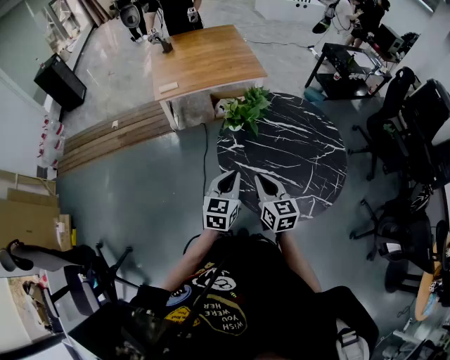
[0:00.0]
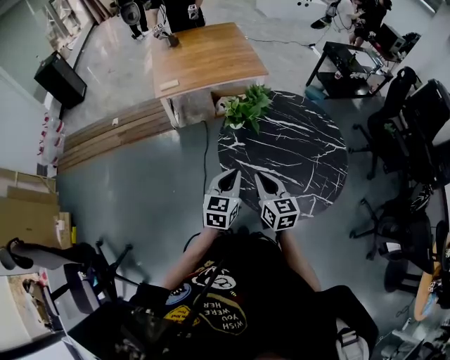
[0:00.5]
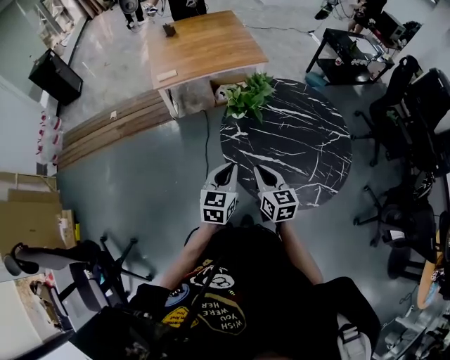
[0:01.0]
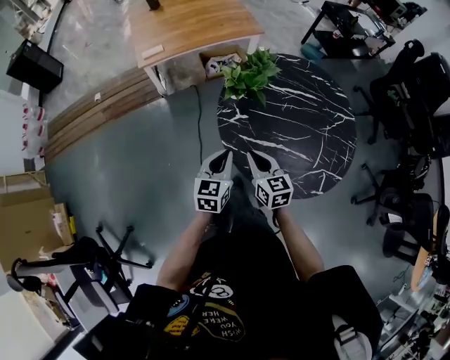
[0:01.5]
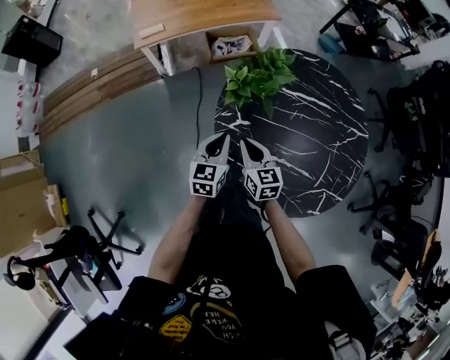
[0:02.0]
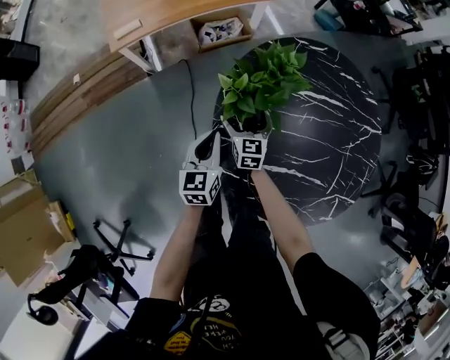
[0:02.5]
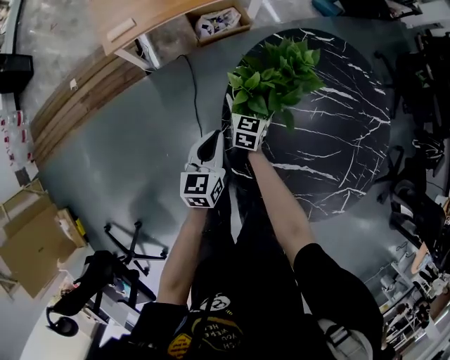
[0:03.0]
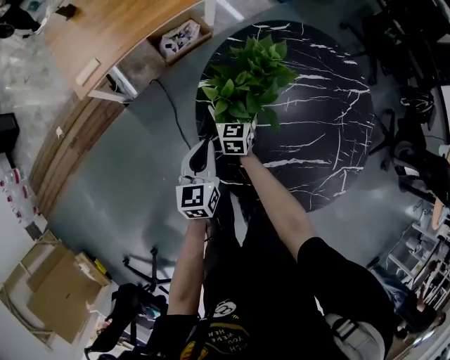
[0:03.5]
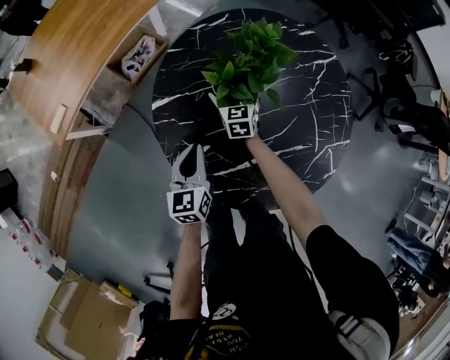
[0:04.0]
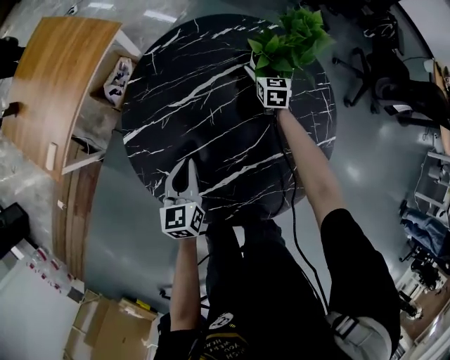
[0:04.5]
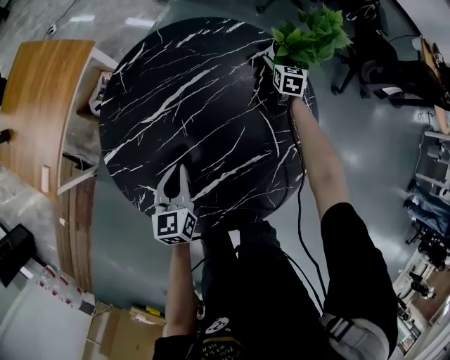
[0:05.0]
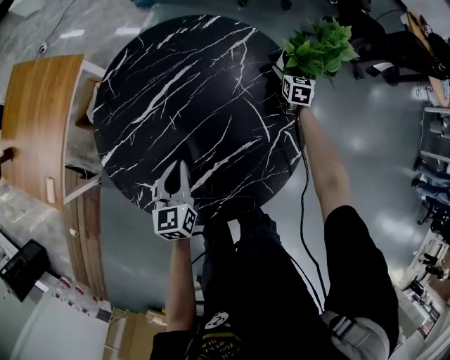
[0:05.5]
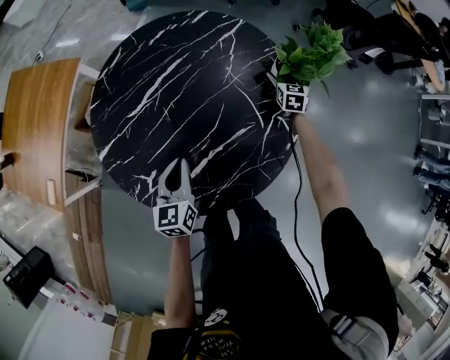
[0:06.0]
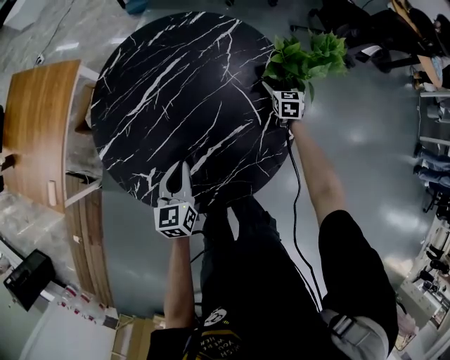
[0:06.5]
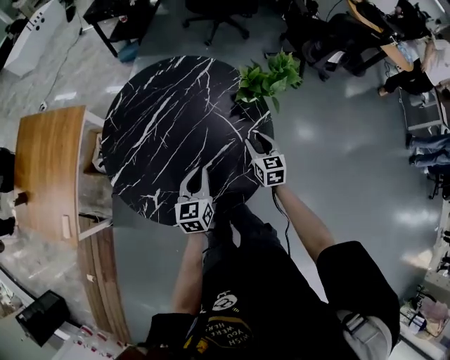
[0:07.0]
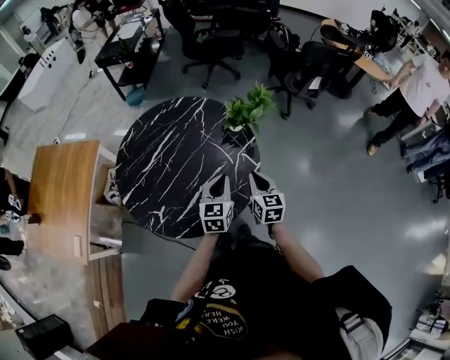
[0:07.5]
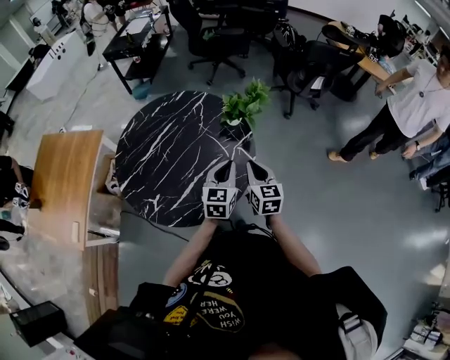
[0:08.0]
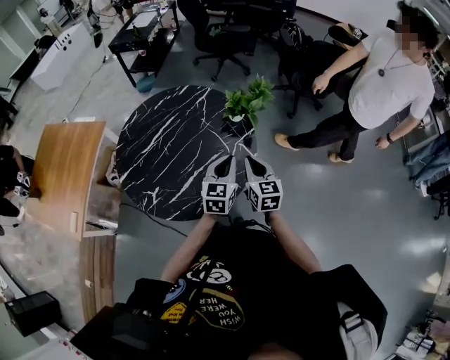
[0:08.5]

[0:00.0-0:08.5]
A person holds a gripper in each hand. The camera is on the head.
0:00.0 to 0:02.0: The two grippers go approximately 25 cm forward and downward.
0:02.0 to 0:04.0: The right gripper ends up roughly 35 cm from where it was, changes its angle by some 40 degrees, and opens. The left gripper shifts by some 15 cm.
0:04.0 to 0:06.5: The right gripper shifts by roughly 50 cm, and swivels approximately 30 degrees. The left gripper shifts by approximately 20 cm, and turns by some 20 degrees.
0:06.5 to 0:08.5: The right gripper travels backward and upward by some 40 cm, changes its angle by approximately 20 degrees, and closes its fingers; the left gripper shifts approximately 30 cm to the right and upward, and rotates some 30 degrees.

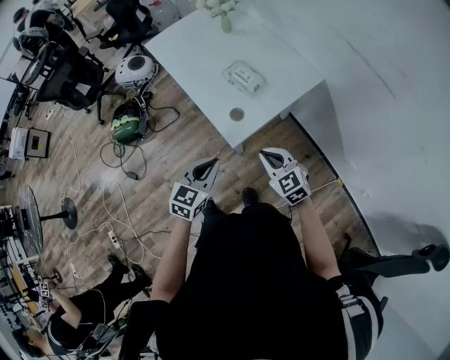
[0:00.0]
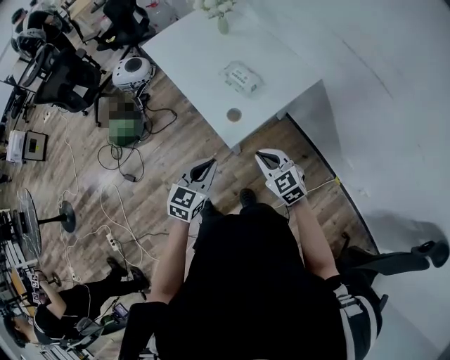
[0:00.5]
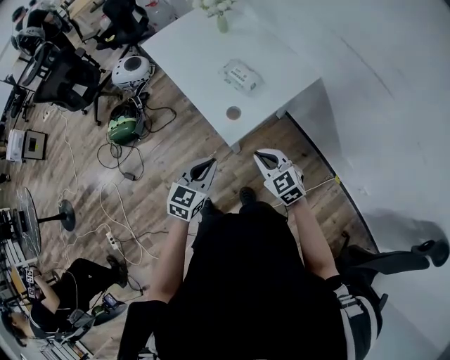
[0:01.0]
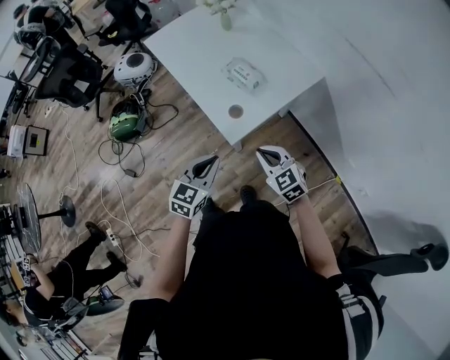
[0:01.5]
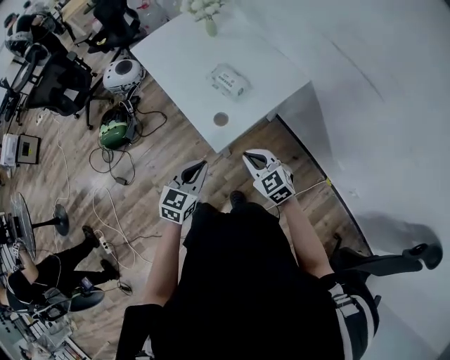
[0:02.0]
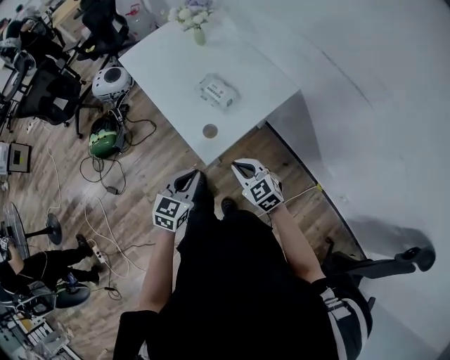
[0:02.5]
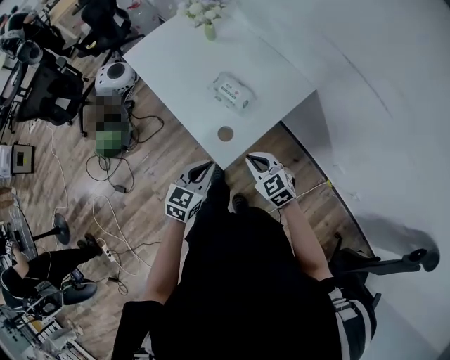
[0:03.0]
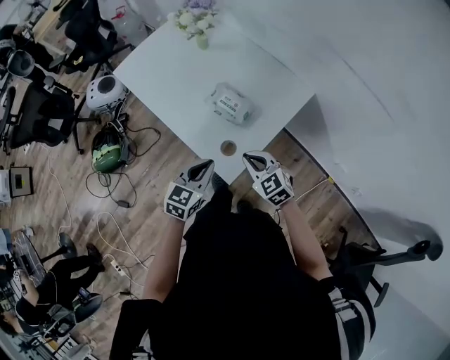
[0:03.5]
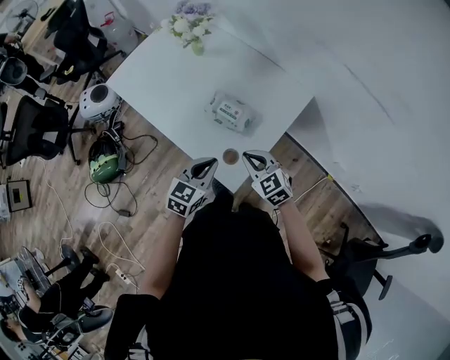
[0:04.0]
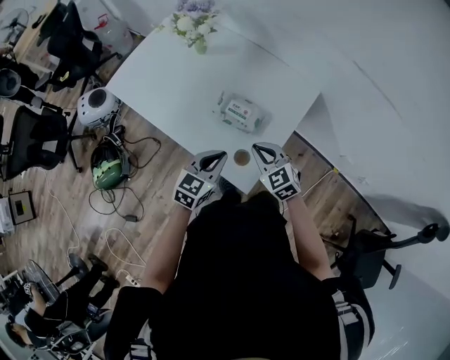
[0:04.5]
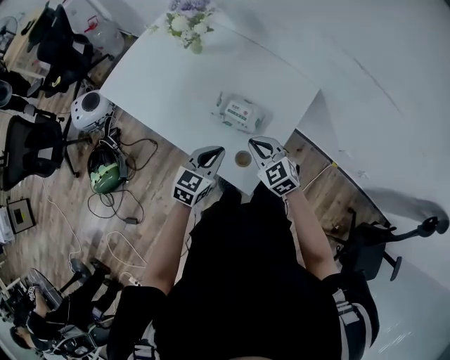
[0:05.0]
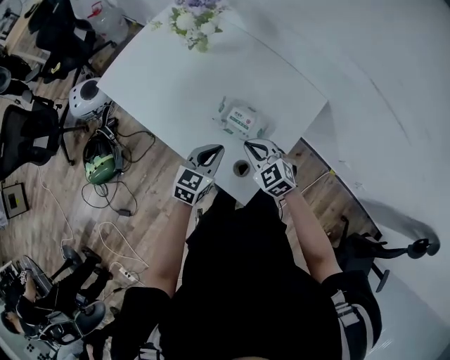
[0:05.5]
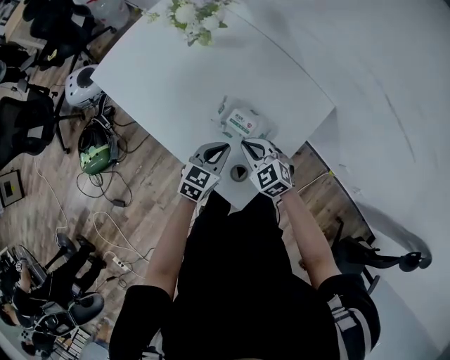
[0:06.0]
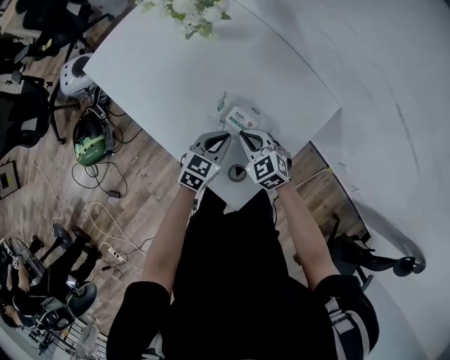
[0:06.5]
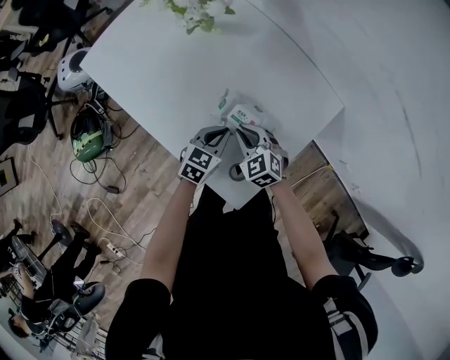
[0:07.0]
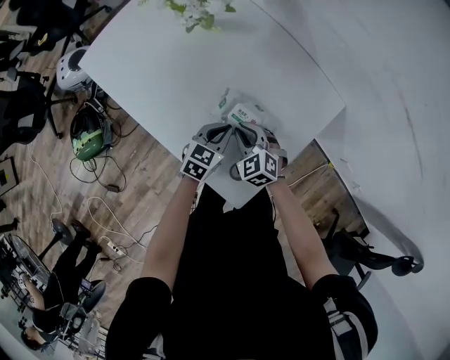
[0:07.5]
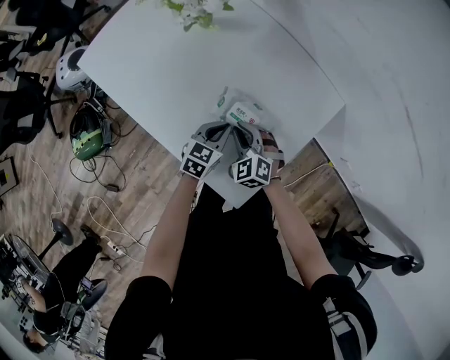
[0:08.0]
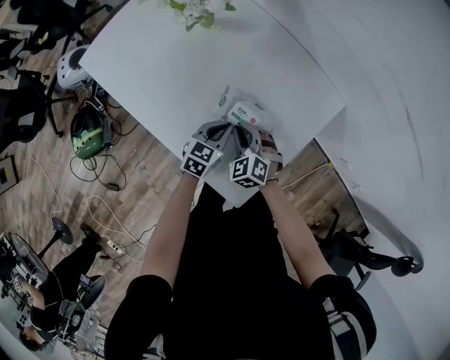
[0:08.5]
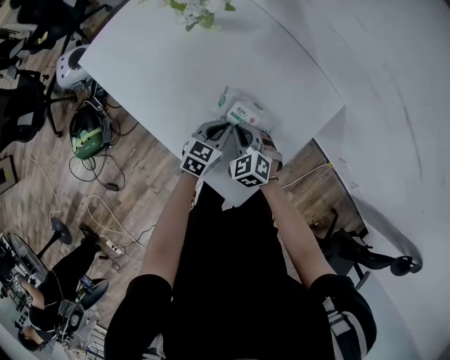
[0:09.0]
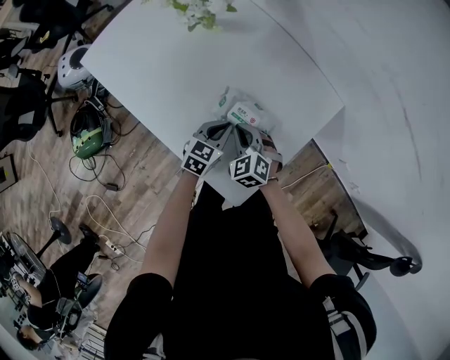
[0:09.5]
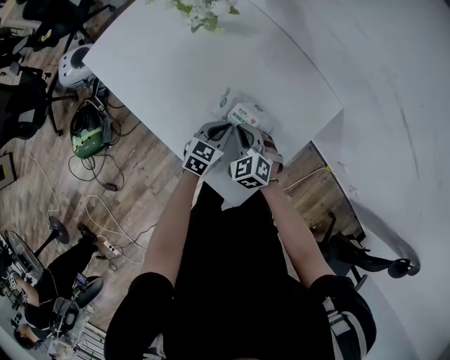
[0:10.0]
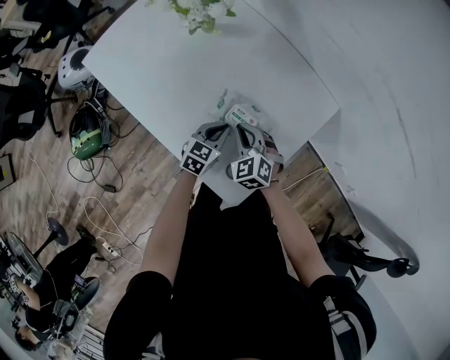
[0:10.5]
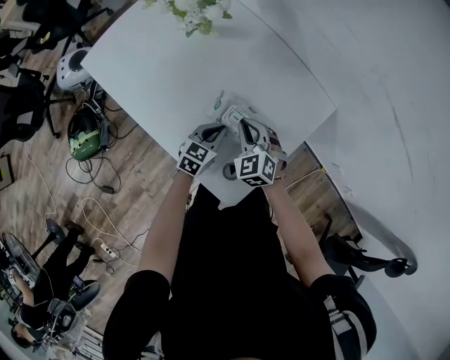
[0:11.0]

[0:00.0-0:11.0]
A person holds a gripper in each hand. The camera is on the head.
0:00.0 to 0:02.0: The grippers stay close to where they were, moving slightly.
0:02.0 to 0:03.5: Both grippers travel together forward, some 15 cm.
0:03.5 to 0:05.5: The right gripper goes about 20 cm forward and to the left; the left gripper is displaced forward by roughly 20 cm.
0:05.5 to 0:07.5: The grippers both shift downward and forward by approximately 15 cm.
0:07.5 to 0:09.0: The grippers move only a little.
0:09.0 to 0:11.0: The right gripper shifts some 5 cm upward.

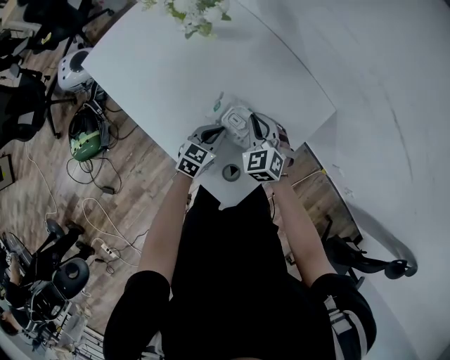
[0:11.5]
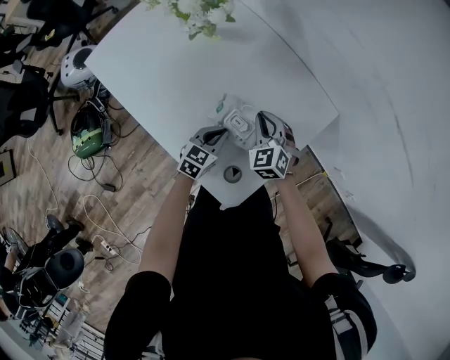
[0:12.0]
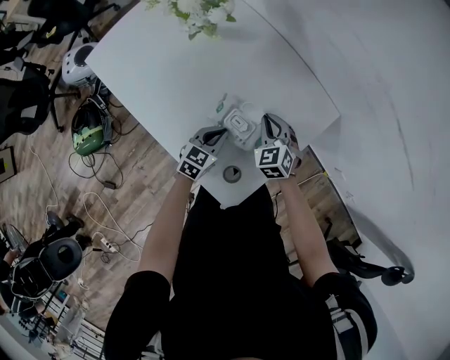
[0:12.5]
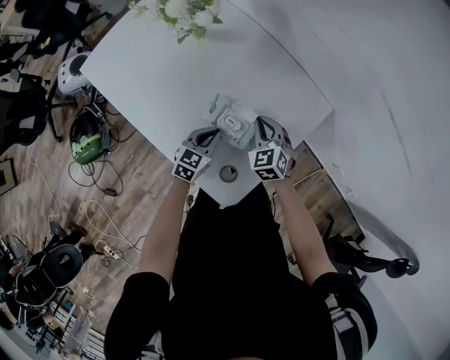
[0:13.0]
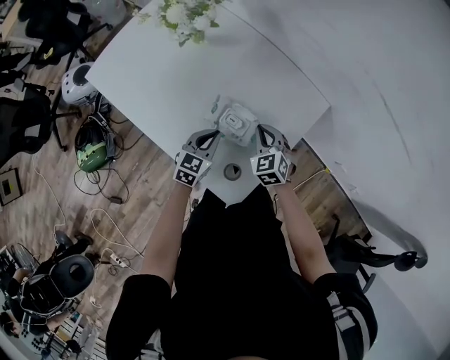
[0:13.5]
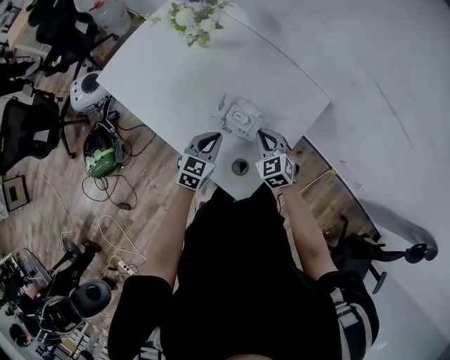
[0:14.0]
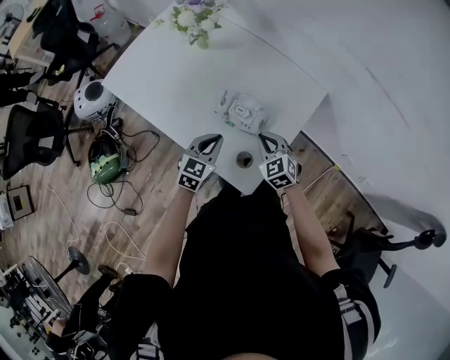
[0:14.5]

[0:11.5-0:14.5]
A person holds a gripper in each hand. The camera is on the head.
0:11.5 to 0:13.0: The grippers make only small movements.
0:13.0 to 0:14.5: The right gripper shifts roughly 15 cm backward. Meanwhile the left gripper moves upward and backward, about 15 cm.

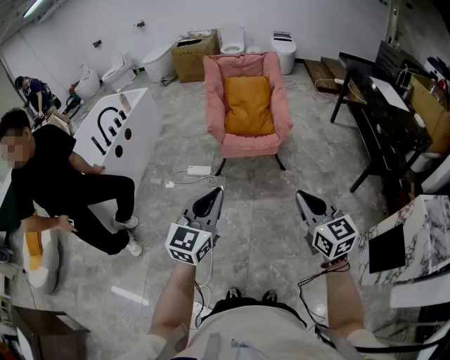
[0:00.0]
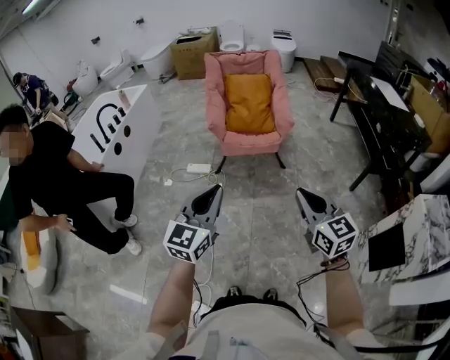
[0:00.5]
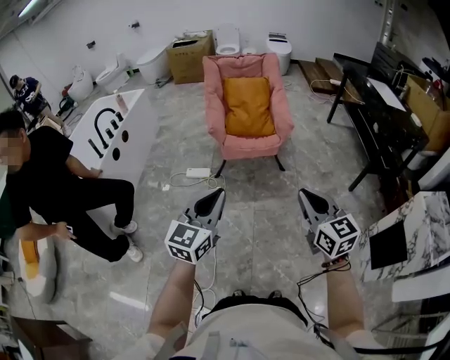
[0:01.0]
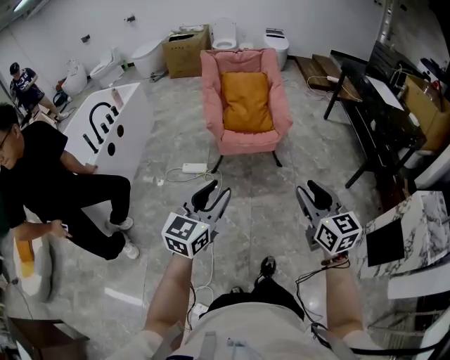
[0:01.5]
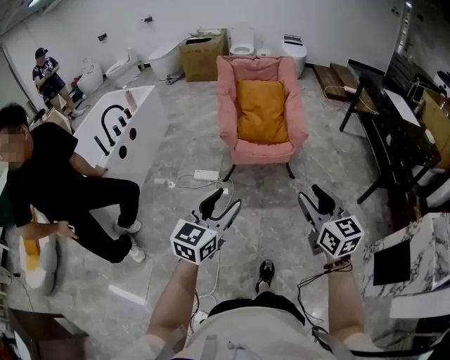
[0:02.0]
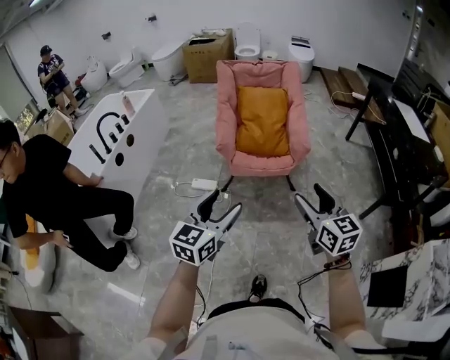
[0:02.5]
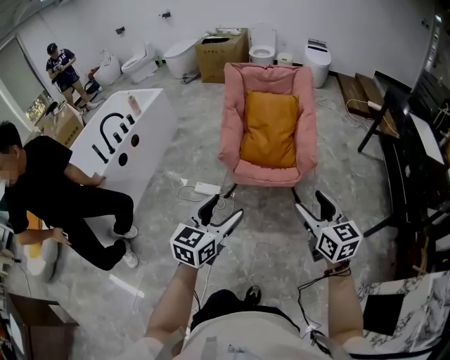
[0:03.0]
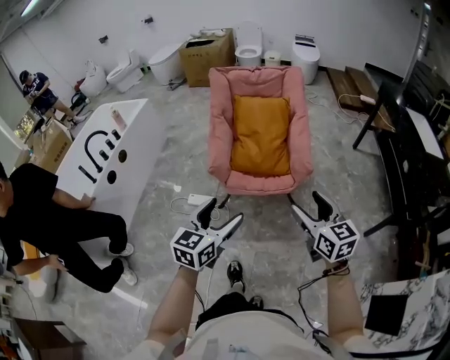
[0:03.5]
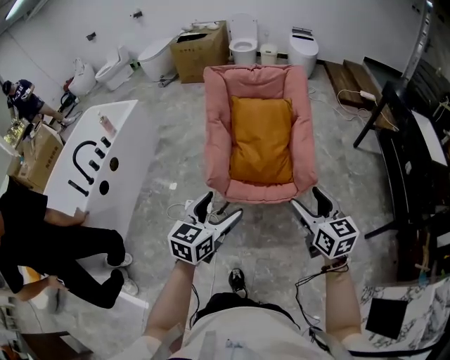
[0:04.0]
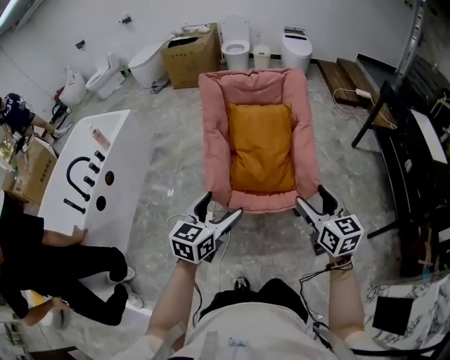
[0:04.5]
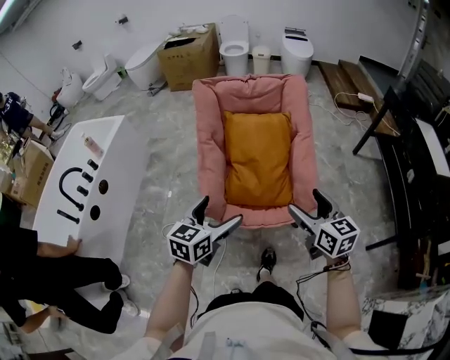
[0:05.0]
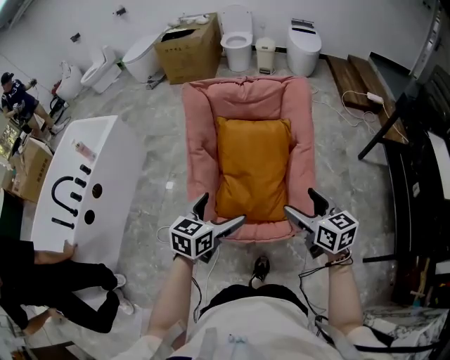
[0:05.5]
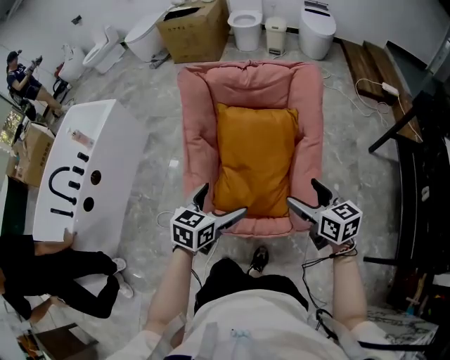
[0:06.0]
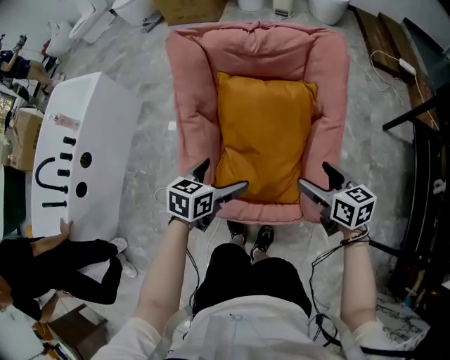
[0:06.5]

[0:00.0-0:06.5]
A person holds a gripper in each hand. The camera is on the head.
0:00.0 to 0:02.0: The grippers both shift forward and to the left by roughly 10 cm. The right gripper opens its fingers. Meanwhile the left gripper opens its fingers.
0:02.0 to 0:04.5: The pair of grippers is taken forward, about 50 cm.
0:04.5 to 0:06.5: Both grippers travel together forward and downward, about 40 cm. The left gripper swivels about 30 degrees. Meanwhile the right gripper changes its angle by roughly 30 degrees.
